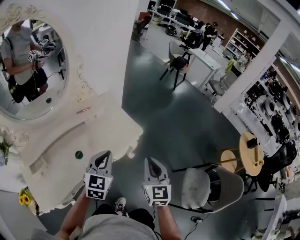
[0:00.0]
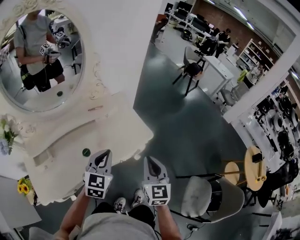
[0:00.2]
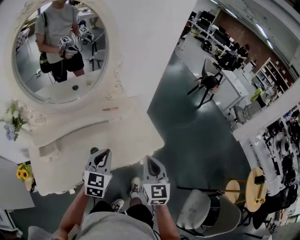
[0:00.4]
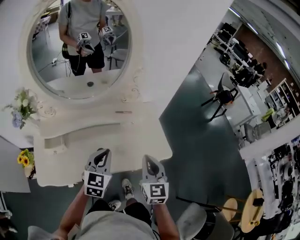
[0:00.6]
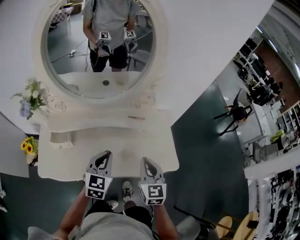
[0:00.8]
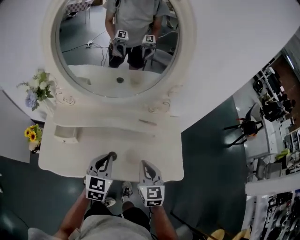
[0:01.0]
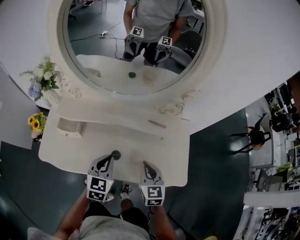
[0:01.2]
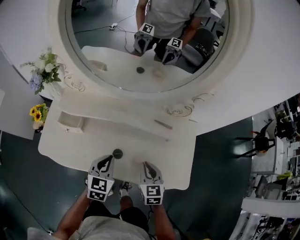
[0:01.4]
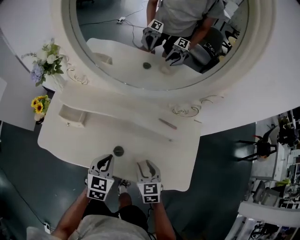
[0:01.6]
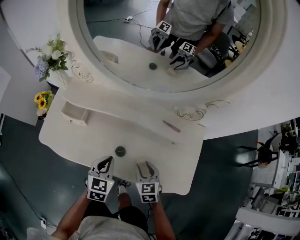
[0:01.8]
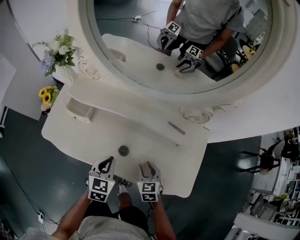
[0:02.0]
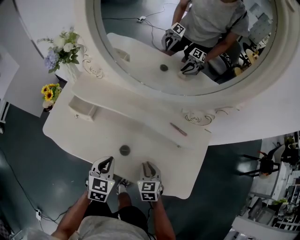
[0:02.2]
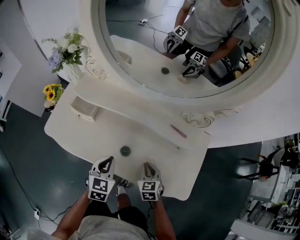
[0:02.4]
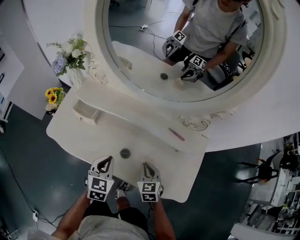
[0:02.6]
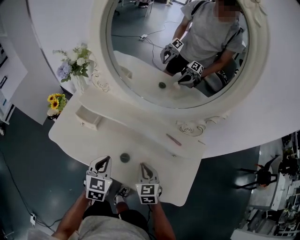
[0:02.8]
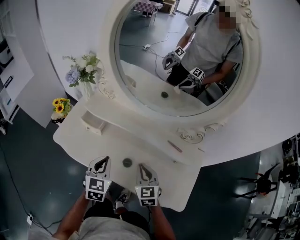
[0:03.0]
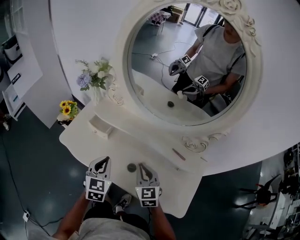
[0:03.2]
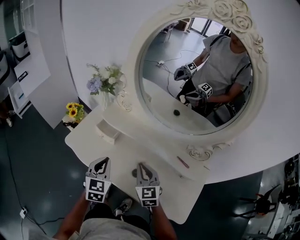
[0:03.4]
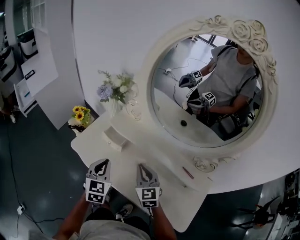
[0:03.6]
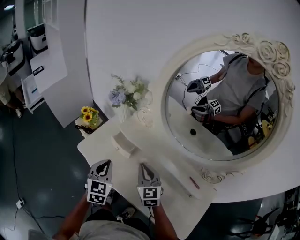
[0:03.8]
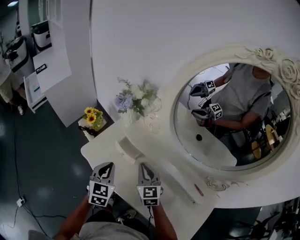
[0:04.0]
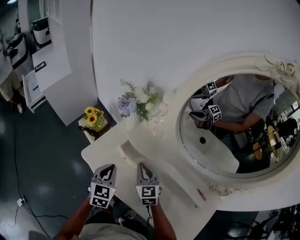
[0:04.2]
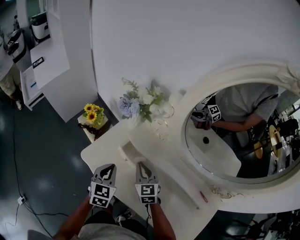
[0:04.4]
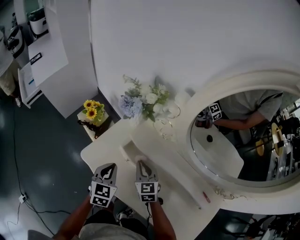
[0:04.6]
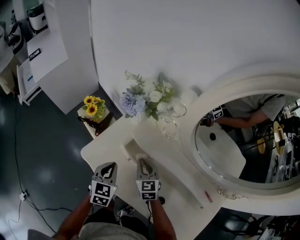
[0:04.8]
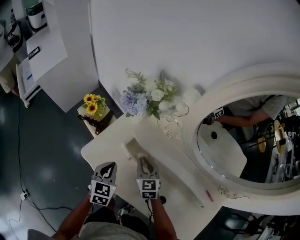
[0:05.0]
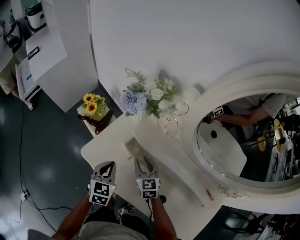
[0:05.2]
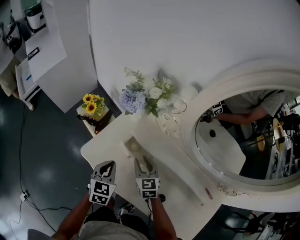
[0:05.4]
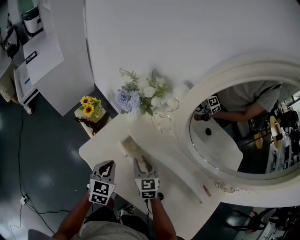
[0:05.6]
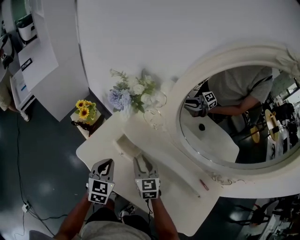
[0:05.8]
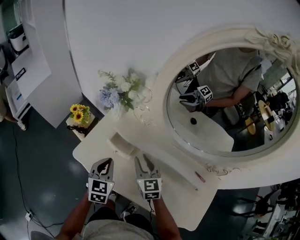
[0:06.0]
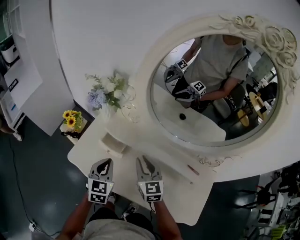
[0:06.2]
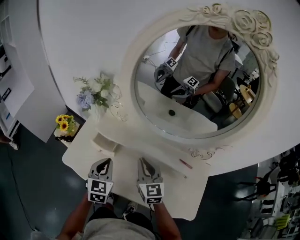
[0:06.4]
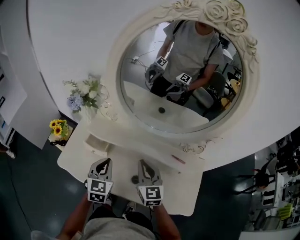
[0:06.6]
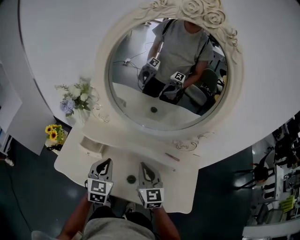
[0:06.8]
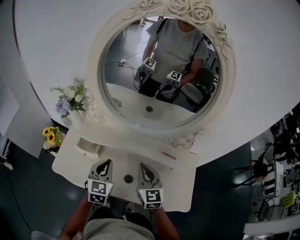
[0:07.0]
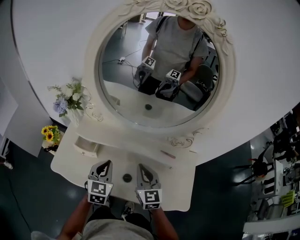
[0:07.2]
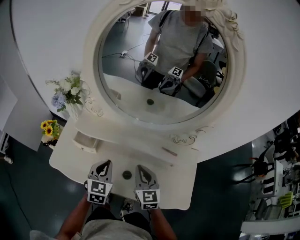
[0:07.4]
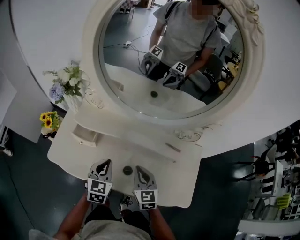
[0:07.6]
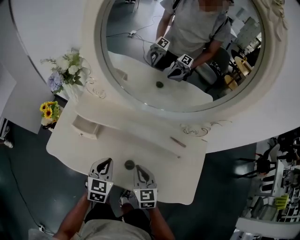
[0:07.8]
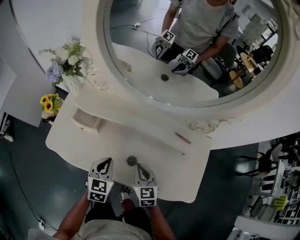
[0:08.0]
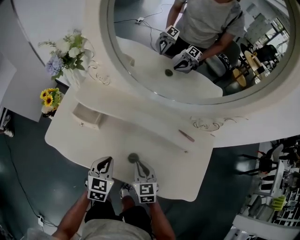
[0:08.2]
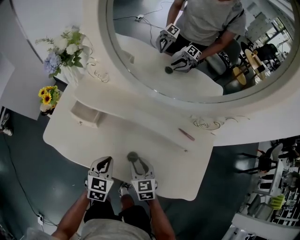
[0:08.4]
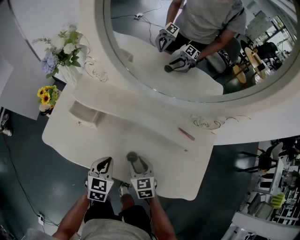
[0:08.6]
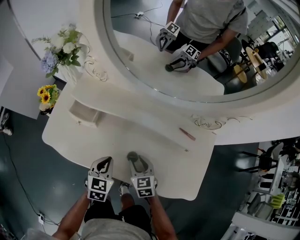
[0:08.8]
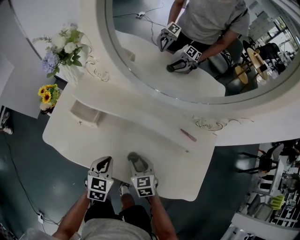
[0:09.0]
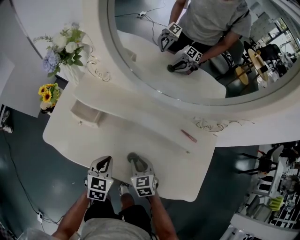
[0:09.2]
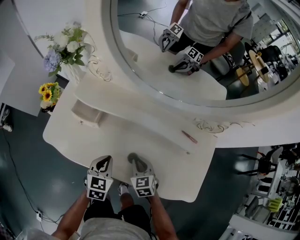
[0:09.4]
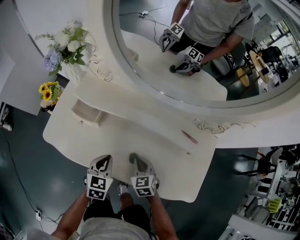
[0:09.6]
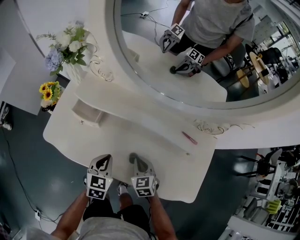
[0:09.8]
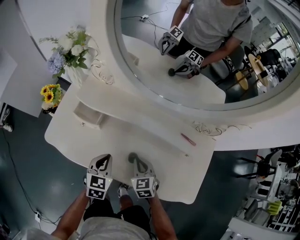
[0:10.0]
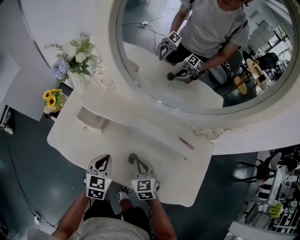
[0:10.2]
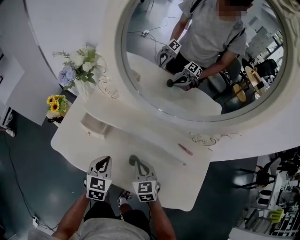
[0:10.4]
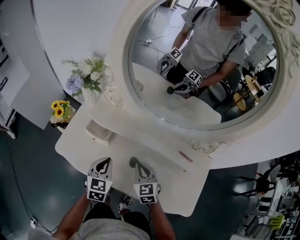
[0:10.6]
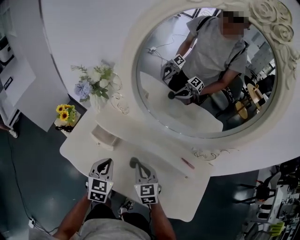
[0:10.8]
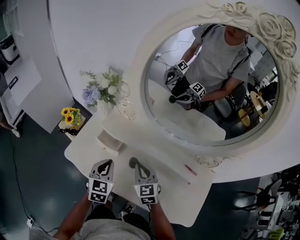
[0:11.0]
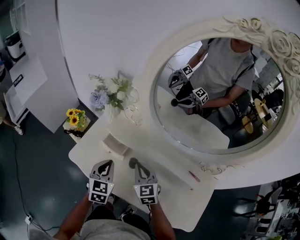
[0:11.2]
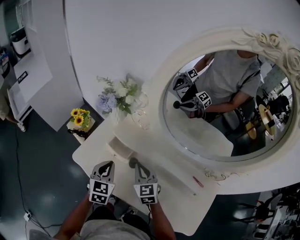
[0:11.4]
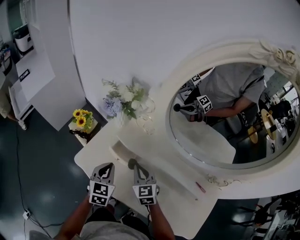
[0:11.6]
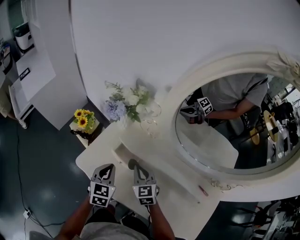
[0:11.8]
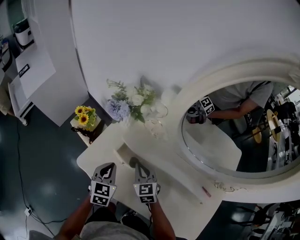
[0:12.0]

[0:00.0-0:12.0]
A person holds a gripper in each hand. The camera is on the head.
0:00.0 to 0:01.6: The left gripper ends up some 30 cm from where it was, and swivels roughly 60 degrees. Meanwhile the right gripper ends up approximately 40 cm from where it was, turns by some 70 degrees, and opens its fingers.
0:01.6 to 0:03.0: The grippers both shift upward and to the left by roughly 10 cm. The right gripper closes its fingers.
0:03.0 to 0:04.4: The right gripper shifts about 30 cm forward and to the left; the left gripper moves to the left and forward, approximately 25 cm.
0:04.4 to 0:06.0: The right gripper moves roughly 5 cm downward and comes back, and opens its fingers.
0:06.0 to 0:07.6: The left gripper heads to the right, covering some 20 cm, while the right gripper goes some 20 cm to the right and backward, turns by approximately 20 degrees, and closes.
0:07.6 to 0:09.0: The two grippers go some 15 cm downward. The right gripper changes its angle by roughly 20 degrees, and opens.
0:09.0 to 0:10.4: Both grippers travel together upward, roughly 10 cm. The right gripper closes.
0:10.4 to 0:12.0: Both grippers move to the left and forward, some 20 cm.

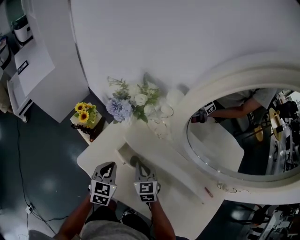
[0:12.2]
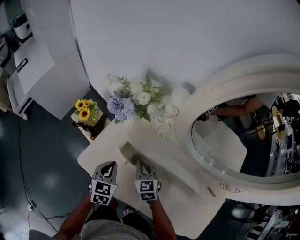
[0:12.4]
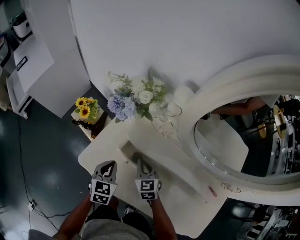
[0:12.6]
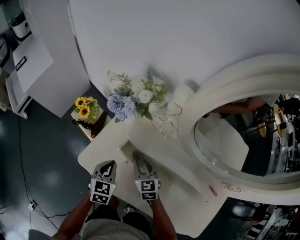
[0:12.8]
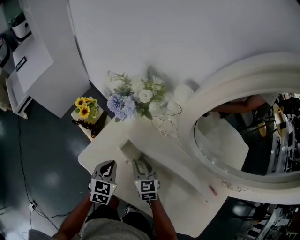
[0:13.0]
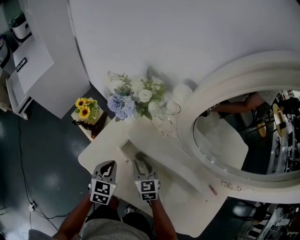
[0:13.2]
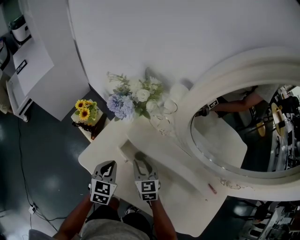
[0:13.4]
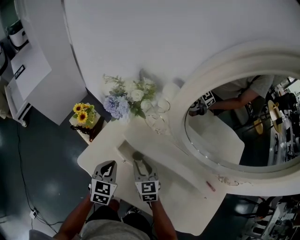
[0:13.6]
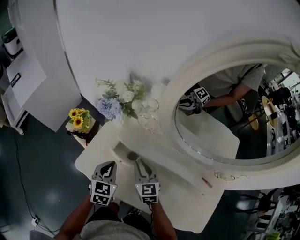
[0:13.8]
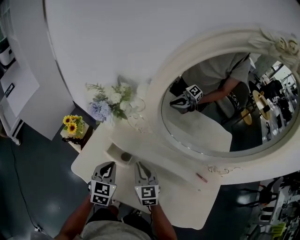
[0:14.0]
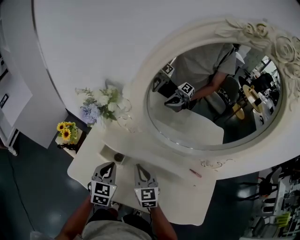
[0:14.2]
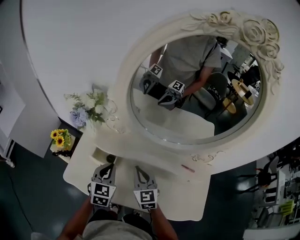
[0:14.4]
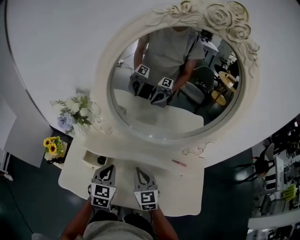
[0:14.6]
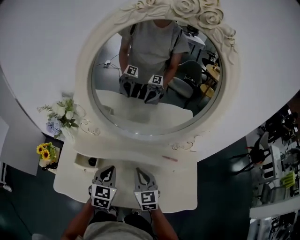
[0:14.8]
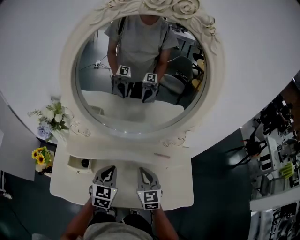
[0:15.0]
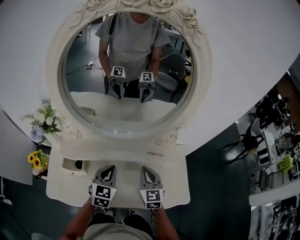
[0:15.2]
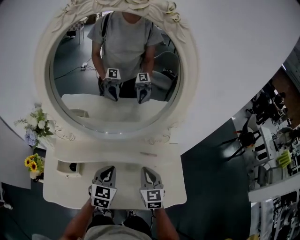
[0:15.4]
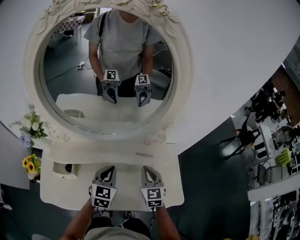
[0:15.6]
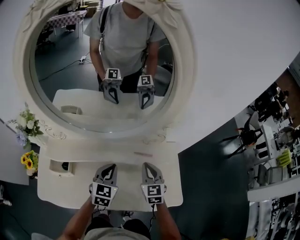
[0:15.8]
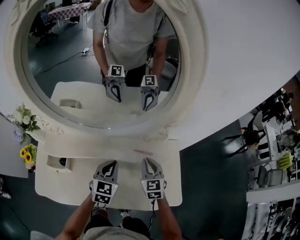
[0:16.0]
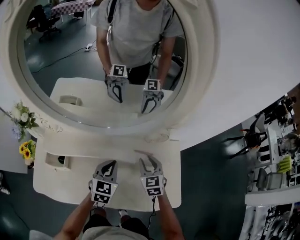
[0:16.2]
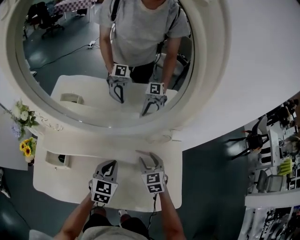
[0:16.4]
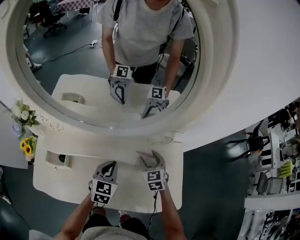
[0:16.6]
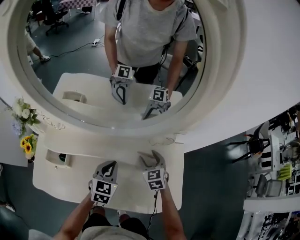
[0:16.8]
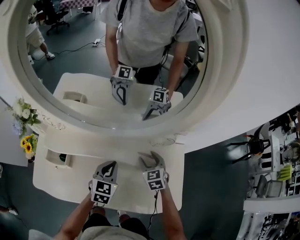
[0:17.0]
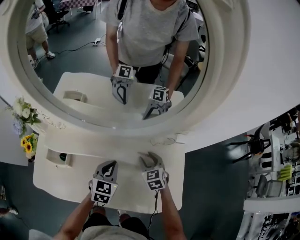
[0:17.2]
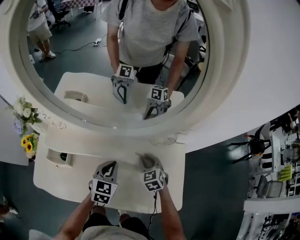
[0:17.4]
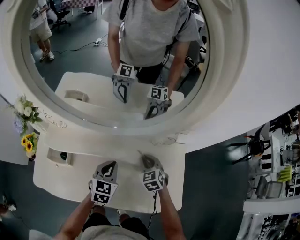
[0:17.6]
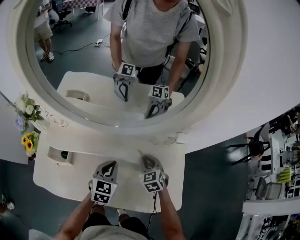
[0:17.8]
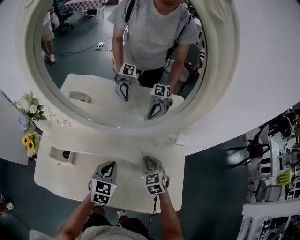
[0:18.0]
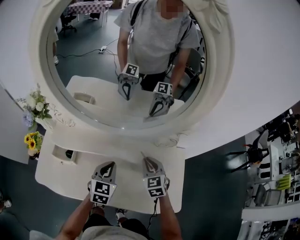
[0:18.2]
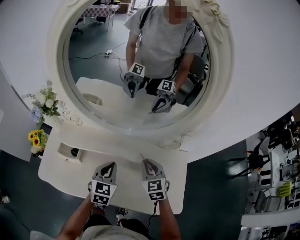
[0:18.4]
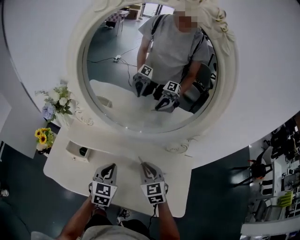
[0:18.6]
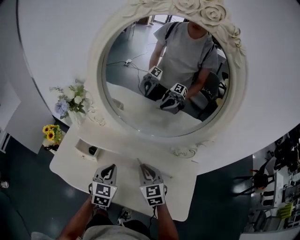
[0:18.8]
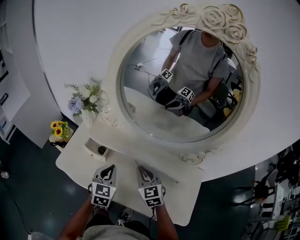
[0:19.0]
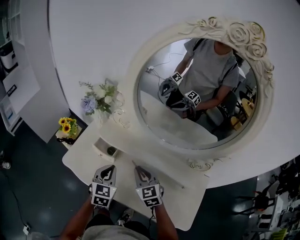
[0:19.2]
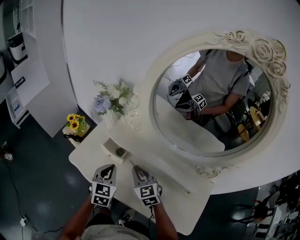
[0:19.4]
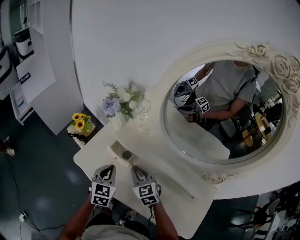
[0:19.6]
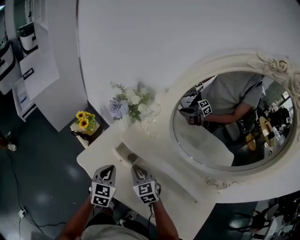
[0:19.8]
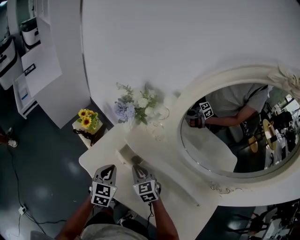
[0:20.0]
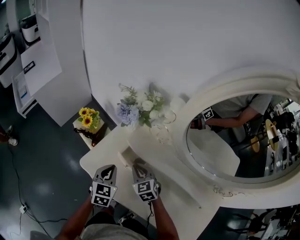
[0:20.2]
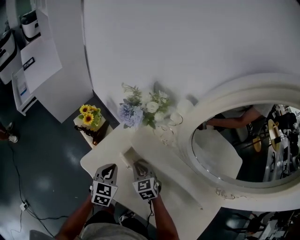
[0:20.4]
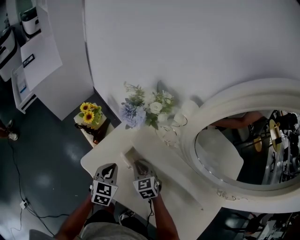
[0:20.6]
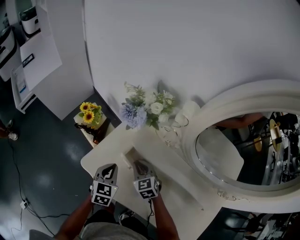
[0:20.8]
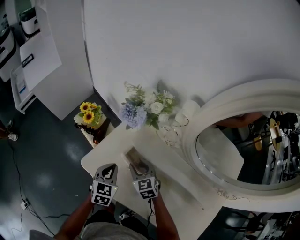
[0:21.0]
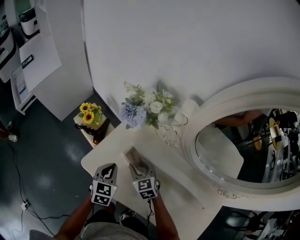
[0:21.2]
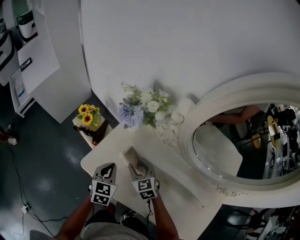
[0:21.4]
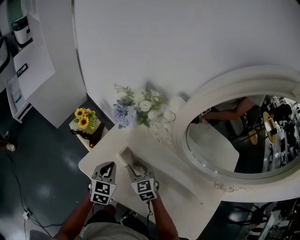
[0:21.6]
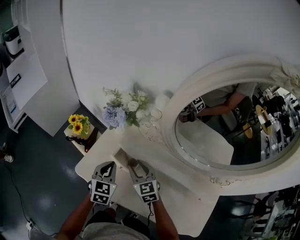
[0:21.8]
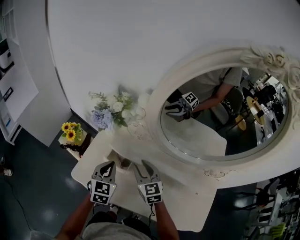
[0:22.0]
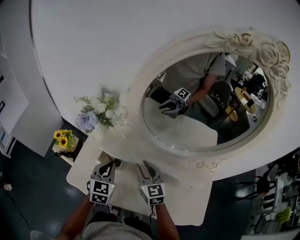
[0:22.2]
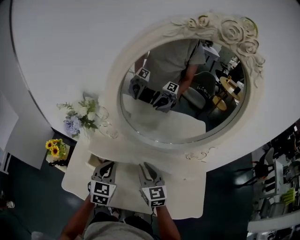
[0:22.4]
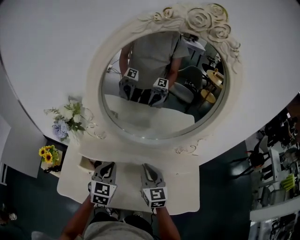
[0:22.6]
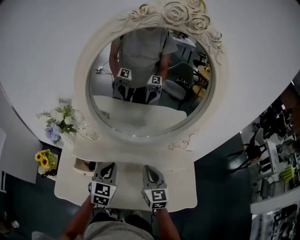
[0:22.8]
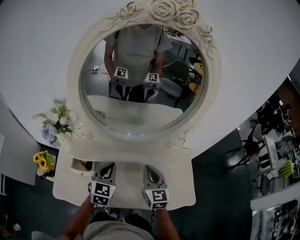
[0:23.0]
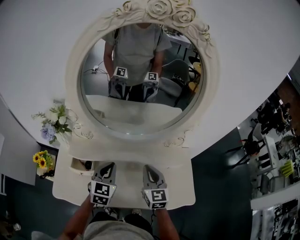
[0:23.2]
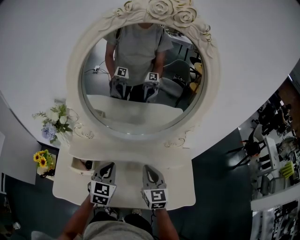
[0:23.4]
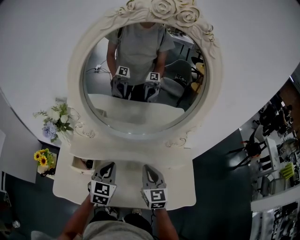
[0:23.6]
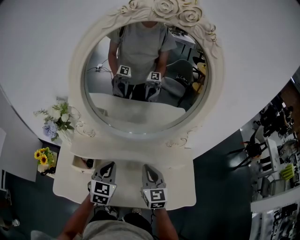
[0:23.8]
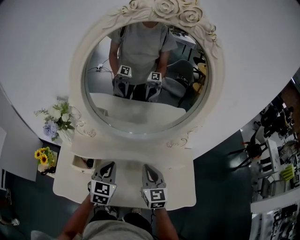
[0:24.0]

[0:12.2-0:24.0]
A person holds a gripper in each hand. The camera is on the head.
0:12.2 to 0:13.6: The right gripper opens up.
0:13.6 to 0:15.2: The right gripper ends up approximately 35 cm from where it was, swivels roughly 40 degrees, and closes its fingers. Meanwhile the left gripper changes place by about 30 cm, and turns by about 40 degrees.
0:15.2 to 0:16.6: The right gripper travels downward, forward and to the right by approximately 20 cm, and opens up; the left gripper travels to the right, downward and forward by about 15 cm.
0:16.6 to 0:18.2: The left gripper moves about 5 cm. Meanwhile the right gripper heads upward, covering approximately 5 cm, and closes.
0:18.2 to 0:19.6: The right gripper shifts by about 35 cm, and turns by some 40 degrees. The left gripper ends up approximately 30 cm from where it was, and swivels some 30 degrees.
0:19.6 to 0:21.0: Both grippers travel together forward, downward and to the left, some 15 cm. The right gripper opens.
0:21.0 to 0:22.6: The right gripper shifts by roughly 35 cm, turns by roughly 50 degrees, and closes, while the left gripper changes place by approximately 25 cm, and rotates some 40 degrees.
0:22.6 to 0:24.0: Both grippers move to the right, some 5 cm.
